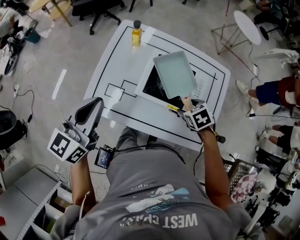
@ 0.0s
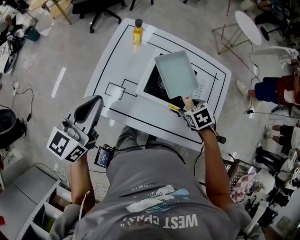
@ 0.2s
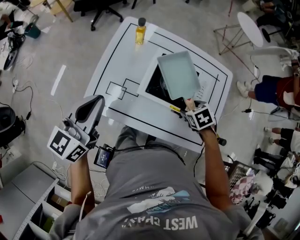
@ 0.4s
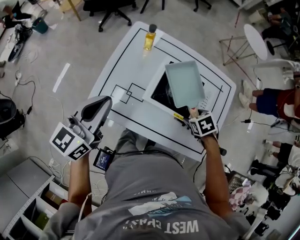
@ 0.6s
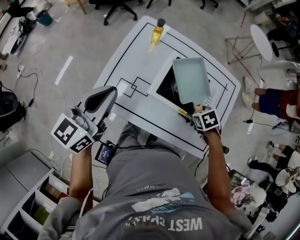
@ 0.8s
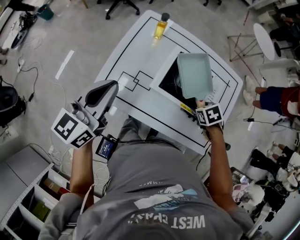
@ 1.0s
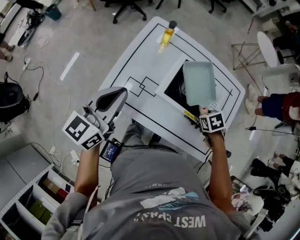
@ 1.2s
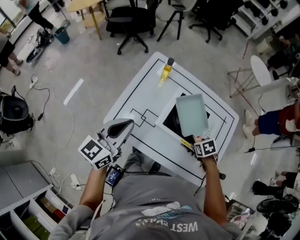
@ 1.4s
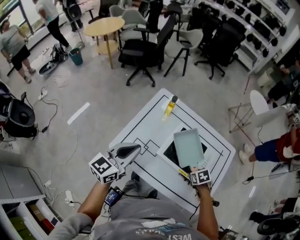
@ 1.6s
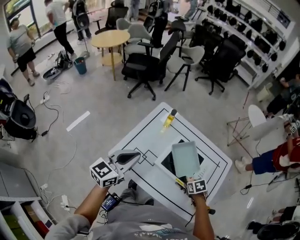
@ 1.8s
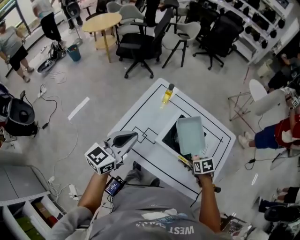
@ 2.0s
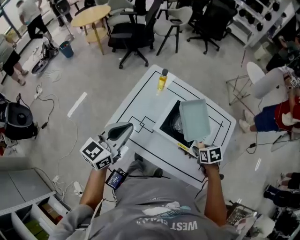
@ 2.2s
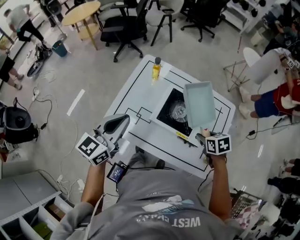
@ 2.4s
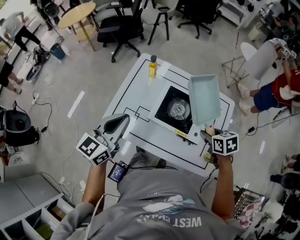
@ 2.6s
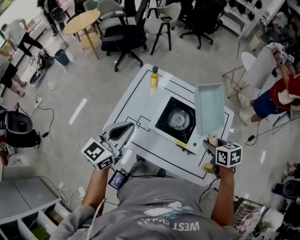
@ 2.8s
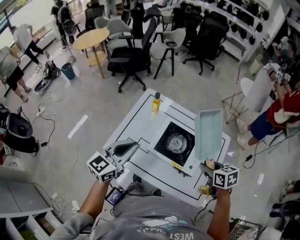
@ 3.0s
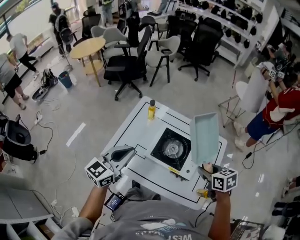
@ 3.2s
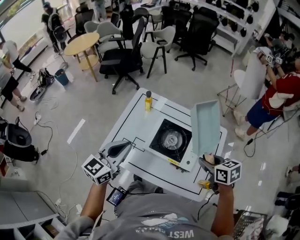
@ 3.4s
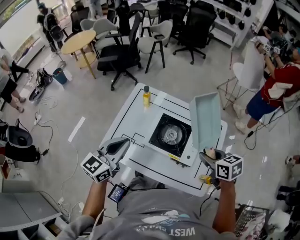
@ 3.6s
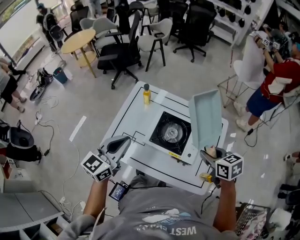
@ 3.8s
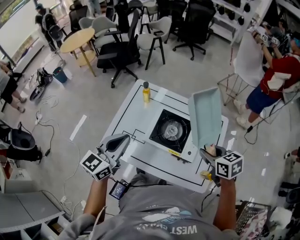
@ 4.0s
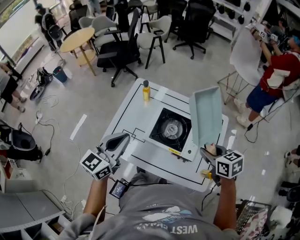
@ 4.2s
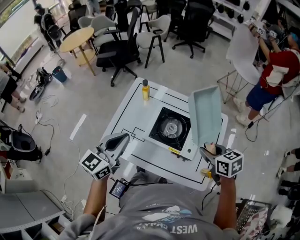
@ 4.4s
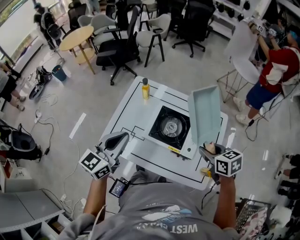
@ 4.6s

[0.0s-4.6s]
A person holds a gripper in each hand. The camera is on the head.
0.0s to 1.6s: The right gripper closes up.
1.6s to 3.0s: The left gripper shifts by roughly 5 cm. The right gripper shifts some 20 cm upward, and turns by approximately 30 degrees.
3.0s to 4.6s: The grippers move only a little.

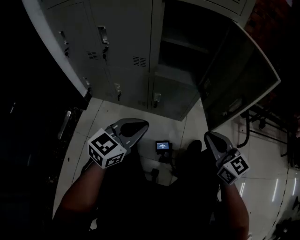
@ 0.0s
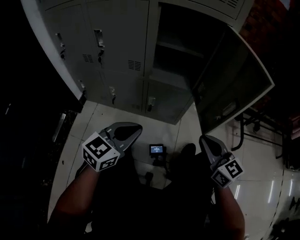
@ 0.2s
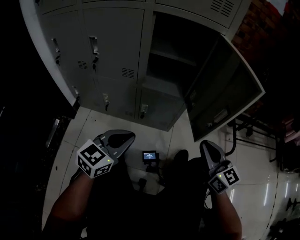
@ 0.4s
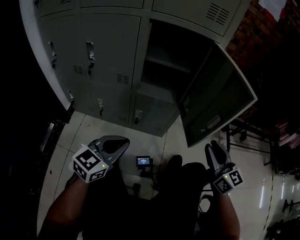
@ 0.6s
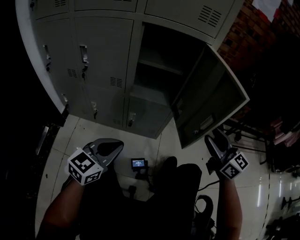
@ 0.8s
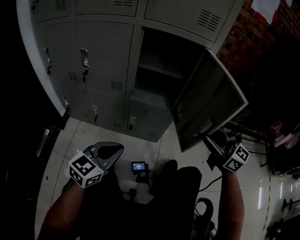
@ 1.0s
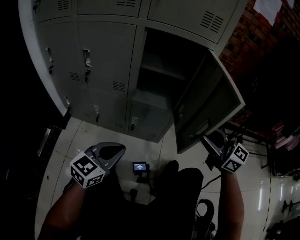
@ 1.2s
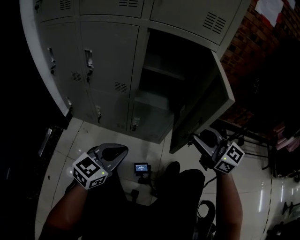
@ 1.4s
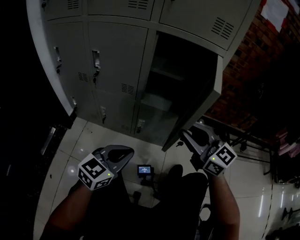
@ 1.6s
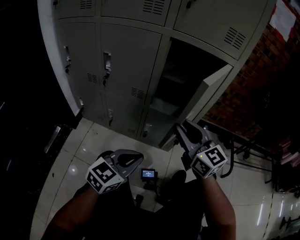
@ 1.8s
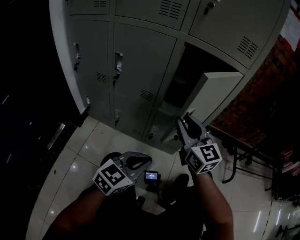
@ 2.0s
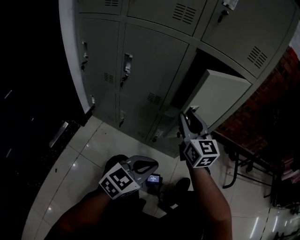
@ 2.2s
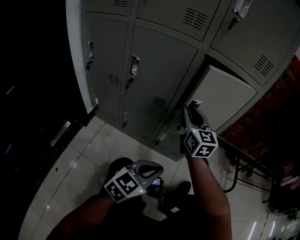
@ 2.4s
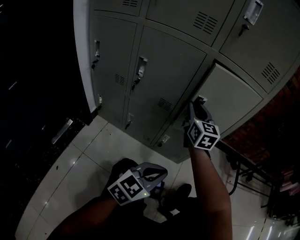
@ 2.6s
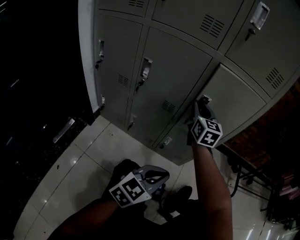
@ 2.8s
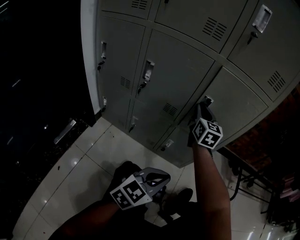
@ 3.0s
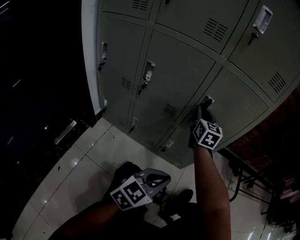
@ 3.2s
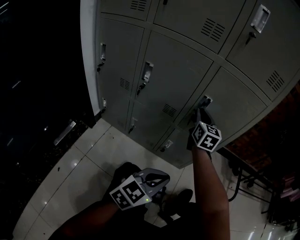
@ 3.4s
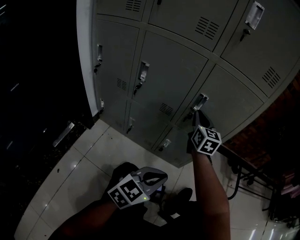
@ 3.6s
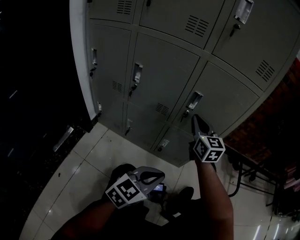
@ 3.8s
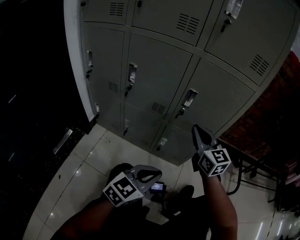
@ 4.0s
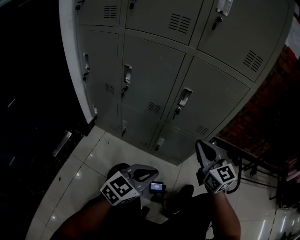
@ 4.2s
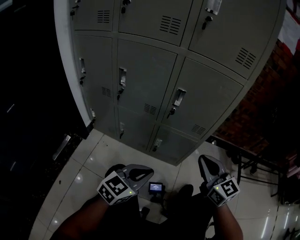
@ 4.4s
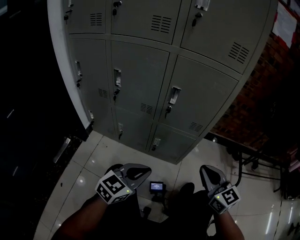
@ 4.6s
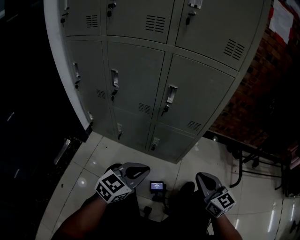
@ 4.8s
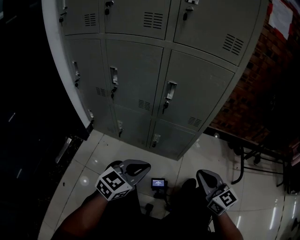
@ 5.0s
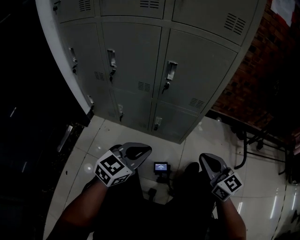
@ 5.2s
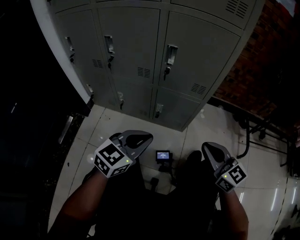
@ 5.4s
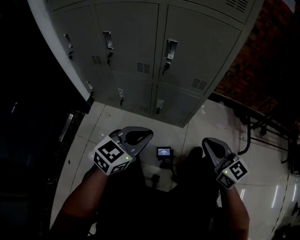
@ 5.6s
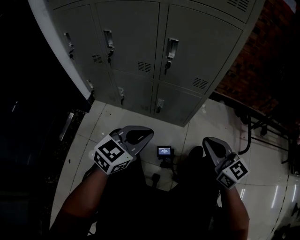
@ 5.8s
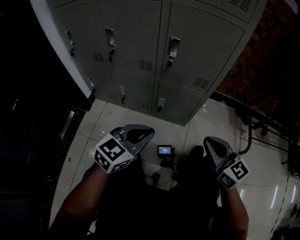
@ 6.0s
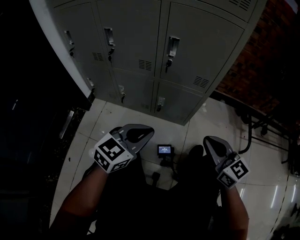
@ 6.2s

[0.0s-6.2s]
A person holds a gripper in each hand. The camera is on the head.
0.0s to 1.6s: The right gripper goes some 10 cm upward and forward, goes to the right and returns, roughly 10 cm each way, and opens its fingers.
1.6s to 3.2s: The right gripper heads forward and to the left, covering roughly 30 cm, and rotates roughly 30 degrees.
3.2s to 4.6s: The right gripper heads backward and to the right, covering about 35 cm, and rotates some 20 degrees.
4.6s to 6.2s: The grippers stay close to where they were, moving slightly.

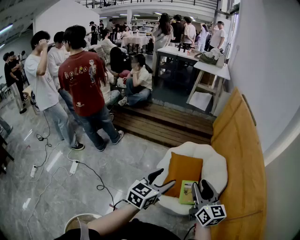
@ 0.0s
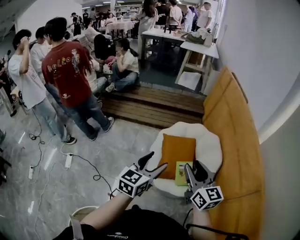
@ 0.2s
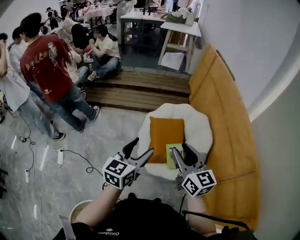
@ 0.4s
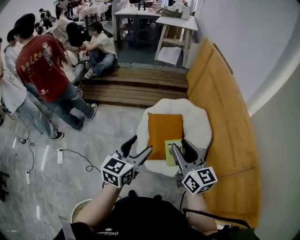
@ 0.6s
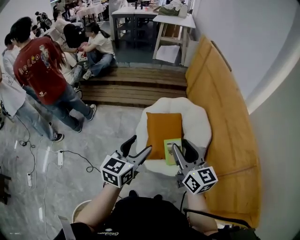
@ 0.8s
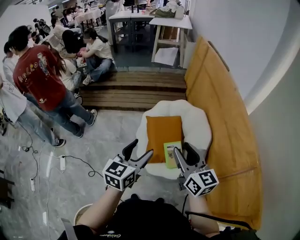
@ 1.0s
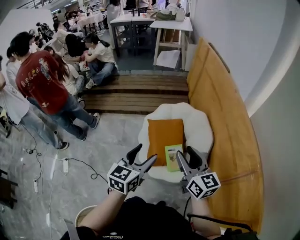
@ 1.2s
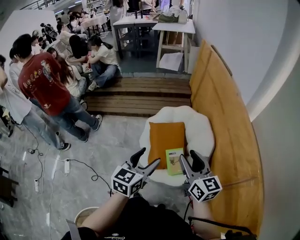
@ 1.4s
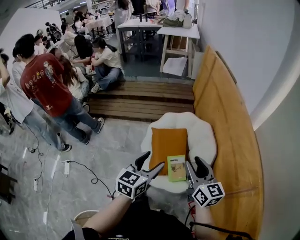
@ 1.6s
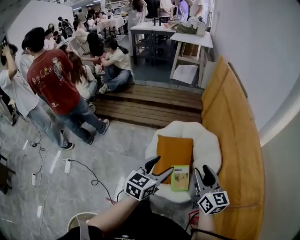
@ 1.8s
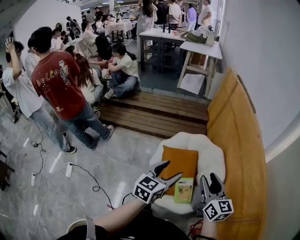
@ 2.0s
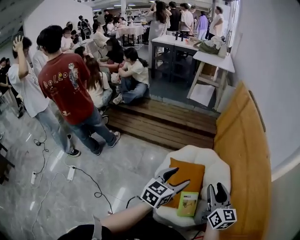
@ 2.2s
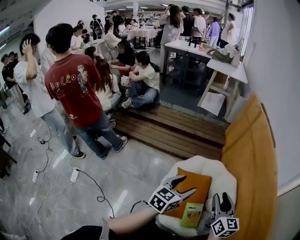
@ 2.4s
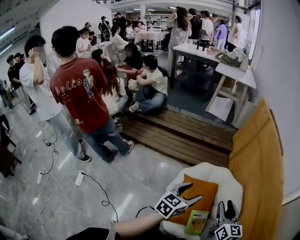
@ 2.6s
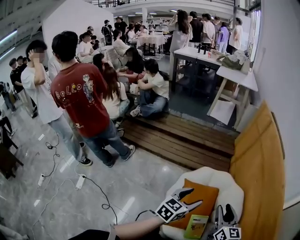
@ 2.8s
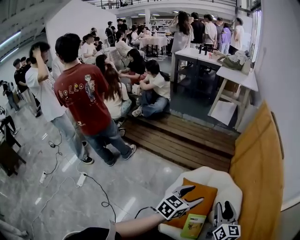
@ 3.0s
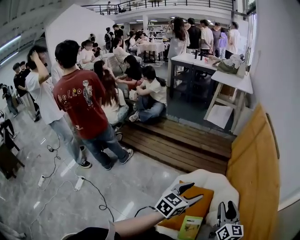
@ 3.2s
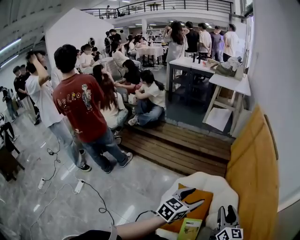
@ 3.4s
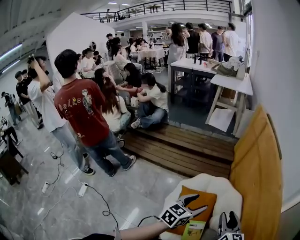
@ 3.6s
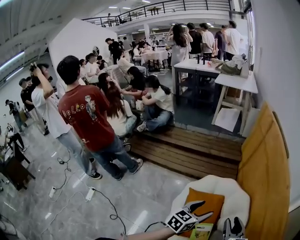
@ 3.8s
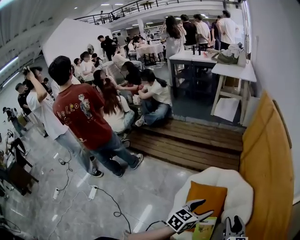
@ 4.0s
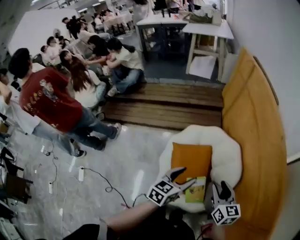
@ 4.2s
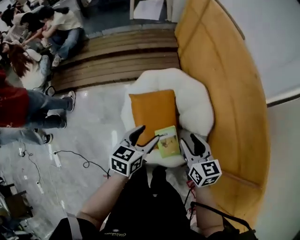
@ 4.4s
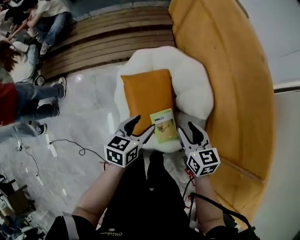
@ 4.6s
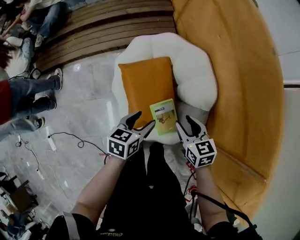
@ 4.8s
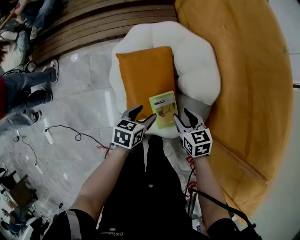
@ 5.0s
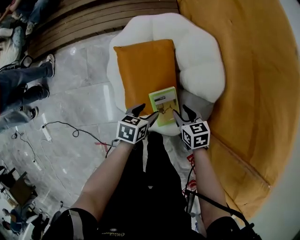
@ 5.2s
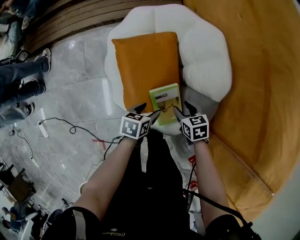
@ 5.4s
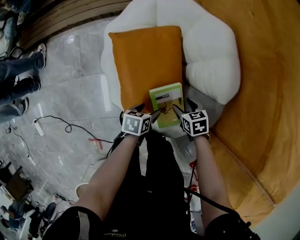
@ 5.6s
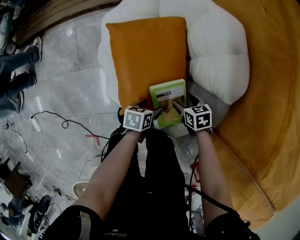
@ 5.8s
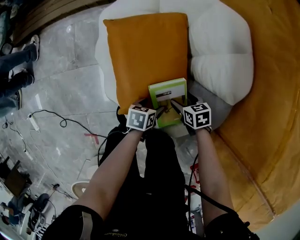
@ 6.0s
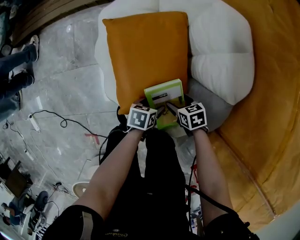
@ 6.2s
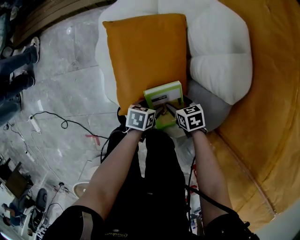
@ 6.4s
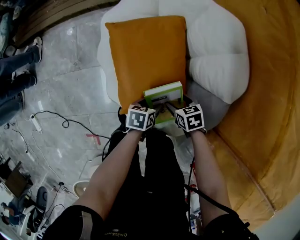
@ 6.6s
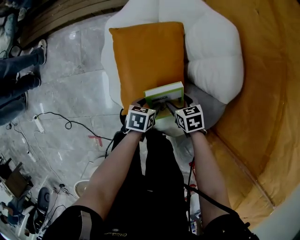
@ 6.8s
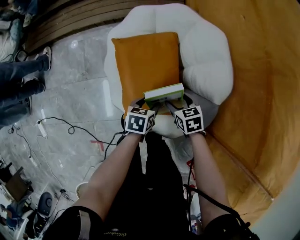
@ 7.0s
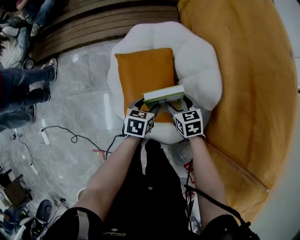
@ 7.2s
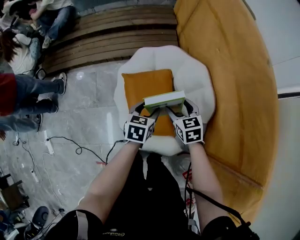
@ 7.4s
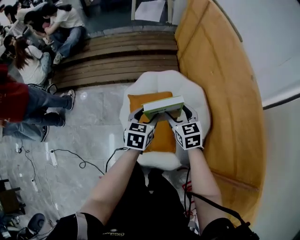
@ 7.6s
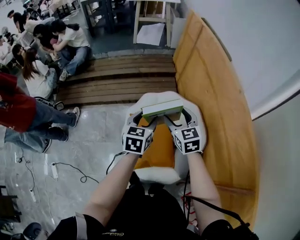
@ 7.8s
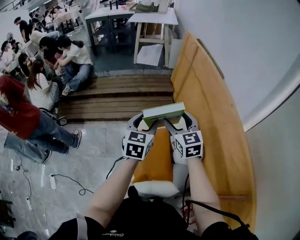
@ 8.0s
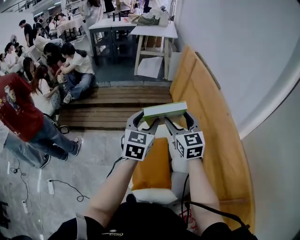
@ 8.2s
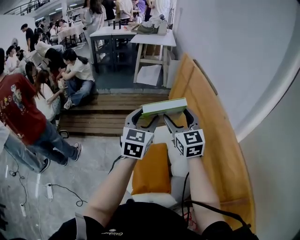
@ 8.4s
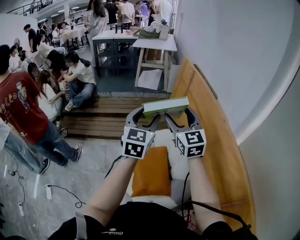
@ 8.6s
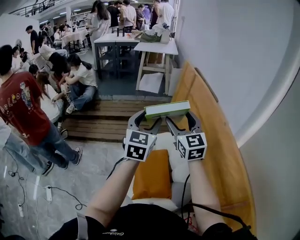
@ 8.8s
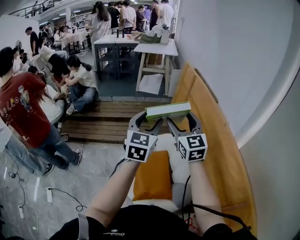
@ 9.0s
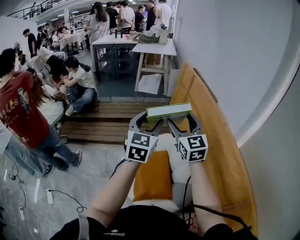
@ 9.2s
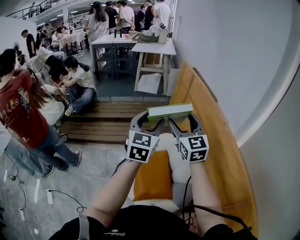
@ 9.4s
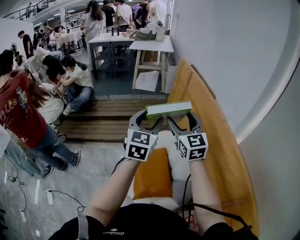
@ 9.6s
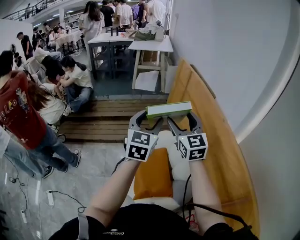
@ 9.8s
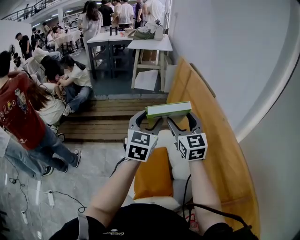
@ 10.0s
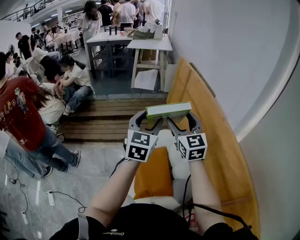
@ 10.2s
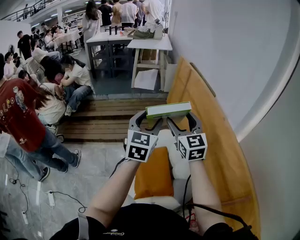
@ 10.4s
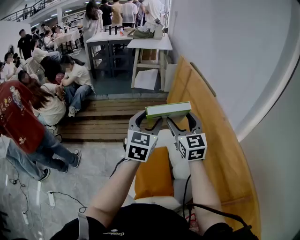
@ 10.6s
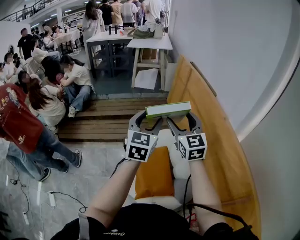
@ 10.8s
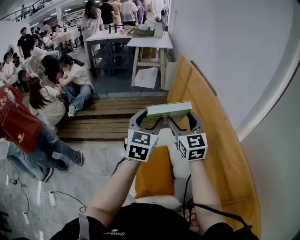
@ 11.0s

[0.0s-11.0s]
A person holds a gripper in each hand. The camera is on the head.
0.0s to 1.6s: The grippers both shift to the right and forward by some 15 cm.
1.6s to 3.2s: The two grippers go some 25 cm forward.
3.2s to 4.8s: Both grippers travel together downward, approximately 30 cm. The right gripper swivels roughly 30 degrees; the left gripper changes its angle by approximately 30 degrees.
4.8s to 6.2s: The two grippers go some 40 cm downward. The right gripper changes its angle by approximately 30 degrees, and opens, while the left gripper swivels roughly 30 degrees.
6.2s to 7.8s: The two grippers go about 60 cm upward. The left gripper changes its angle by about 50 degrees. Meanwhile the right gripper angles its fingers upward, by approximately 40 degrees.
7.8s to 9.4s: Both grippers travel together upward, about 25 cm. The right gripper rotates approximately 30 degrees, while the left gripper rotates roughly 30 degrees.
9.4s to 11.0s: There are only small adjustments of the grippers.

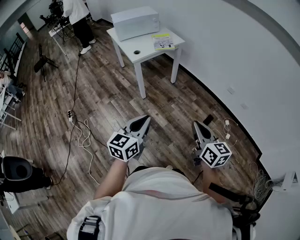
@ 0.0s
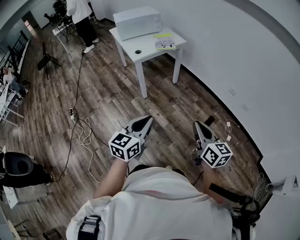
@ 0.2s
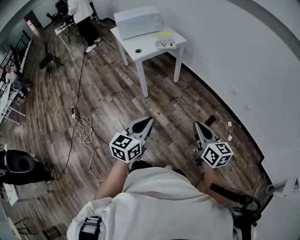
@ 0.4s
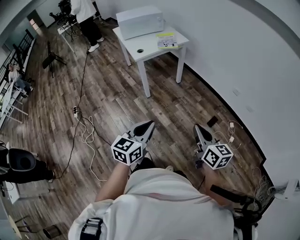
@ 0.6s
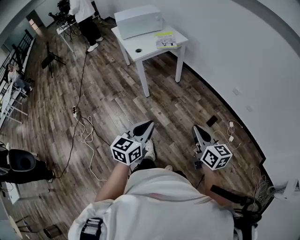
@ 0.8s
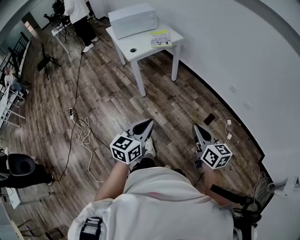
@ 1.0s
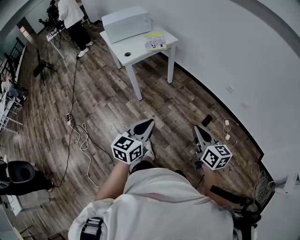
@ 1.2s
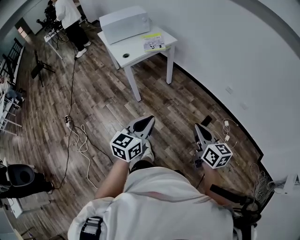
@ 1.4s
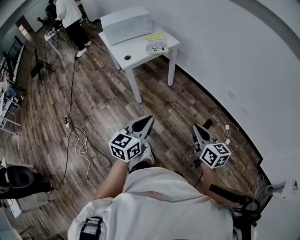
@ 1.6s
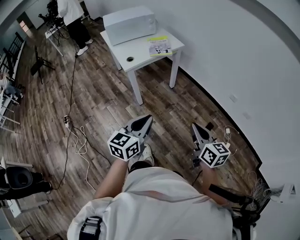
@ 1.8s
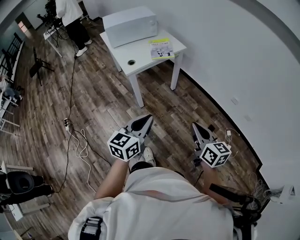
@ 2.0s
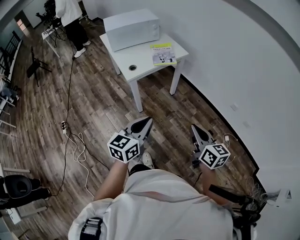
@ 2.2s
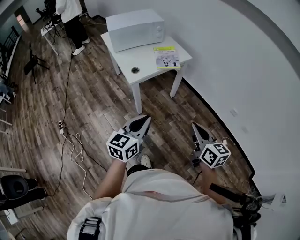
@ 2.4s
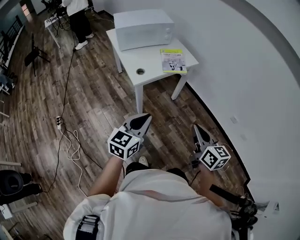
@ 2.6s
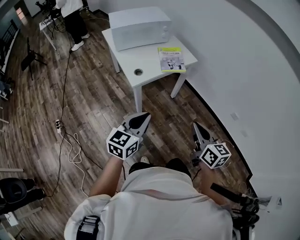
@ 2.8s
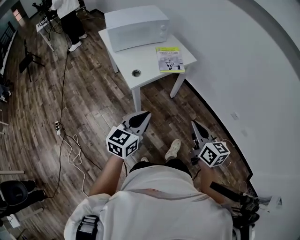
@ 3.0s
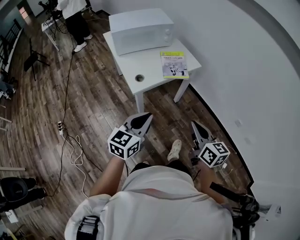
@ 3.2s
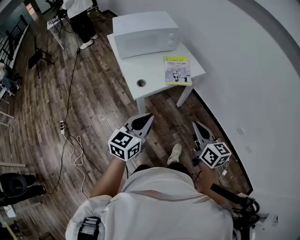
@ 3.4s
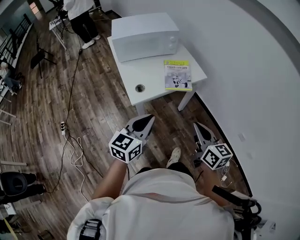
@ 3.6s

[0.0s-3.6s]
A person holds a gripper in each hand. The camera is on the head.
0.0s to 1.8s: Both grippers move forward, about 15 cm.
1.8s to 3.6s: Both grippers travel together forward, some 35 cm.
